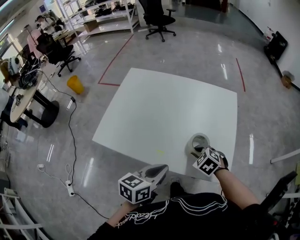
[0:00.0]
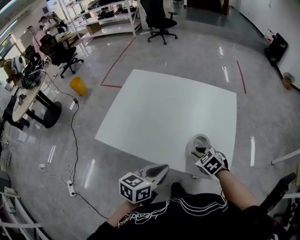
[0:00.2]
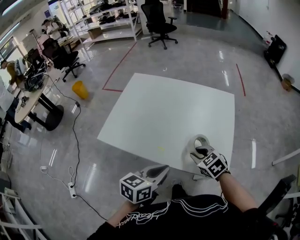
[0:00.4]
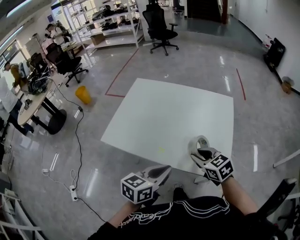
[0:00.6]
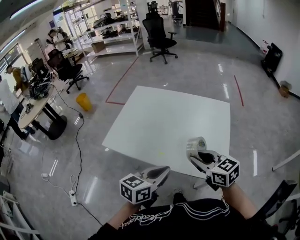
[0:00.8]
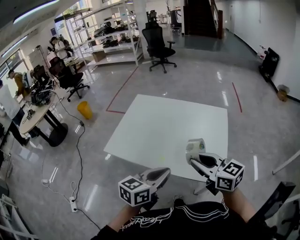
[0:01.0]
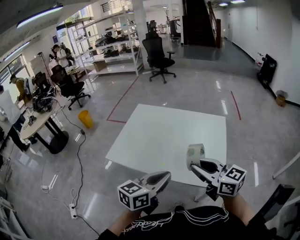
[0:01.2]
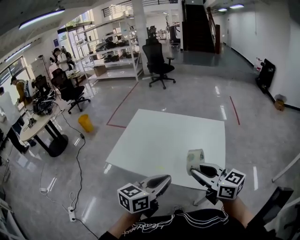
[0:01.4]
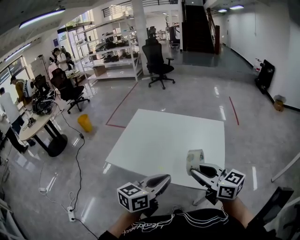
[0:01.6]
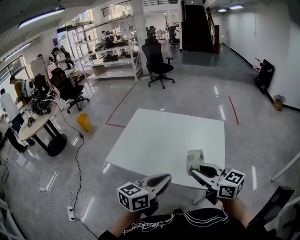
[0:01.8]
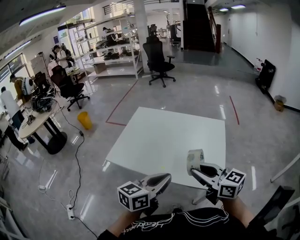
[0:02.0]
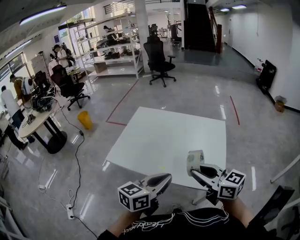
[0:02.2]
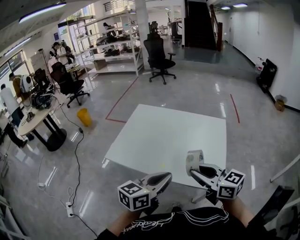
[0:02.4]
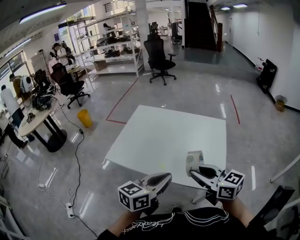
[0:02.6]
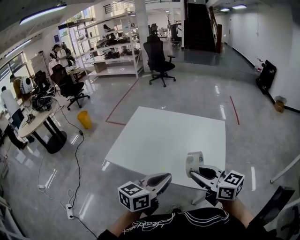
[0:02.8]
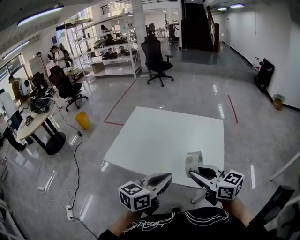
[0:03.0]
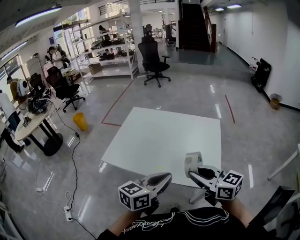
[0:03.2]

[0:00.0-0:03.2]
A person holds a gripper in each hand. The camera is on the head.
0.0 to 1.6 s: The left gripper is displaced upward and backward by about 15 cm; the right gripper shifts about 30 cm upward and backward, and points its fingers about 60 degrees further upward.
1.6 to 3.2 s: The grippers move only a little.

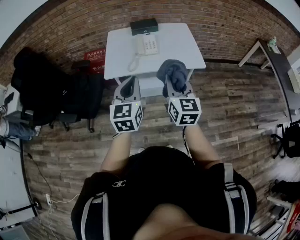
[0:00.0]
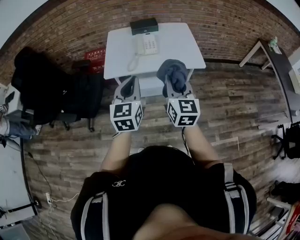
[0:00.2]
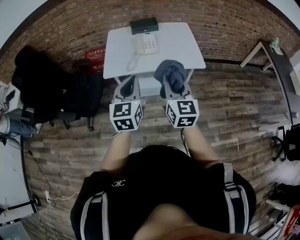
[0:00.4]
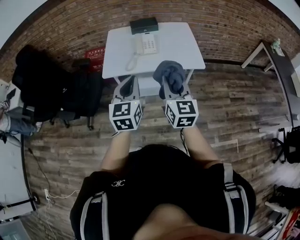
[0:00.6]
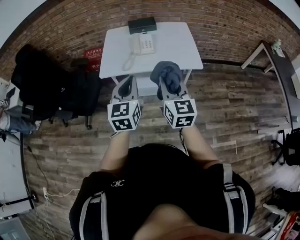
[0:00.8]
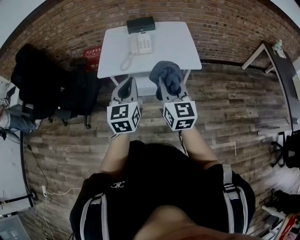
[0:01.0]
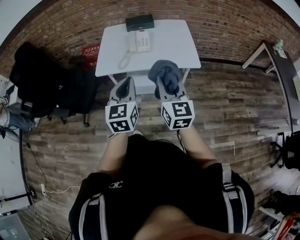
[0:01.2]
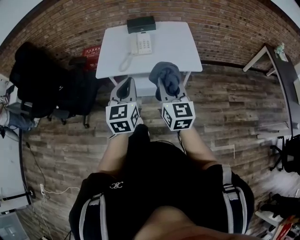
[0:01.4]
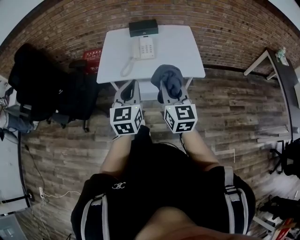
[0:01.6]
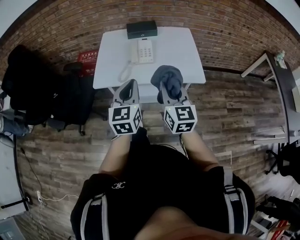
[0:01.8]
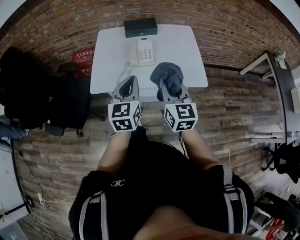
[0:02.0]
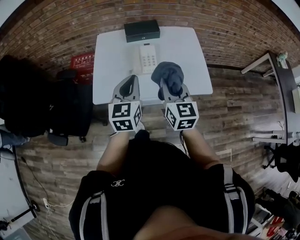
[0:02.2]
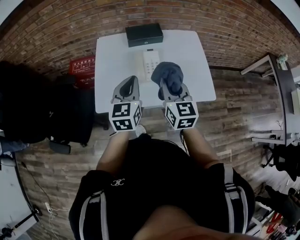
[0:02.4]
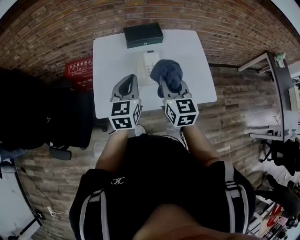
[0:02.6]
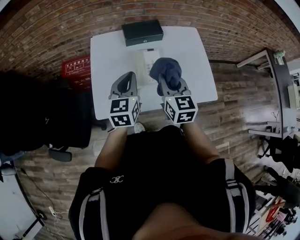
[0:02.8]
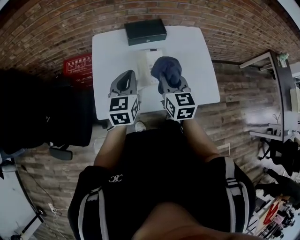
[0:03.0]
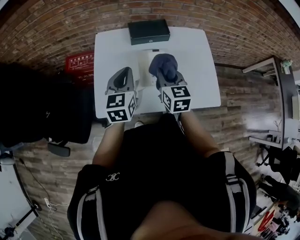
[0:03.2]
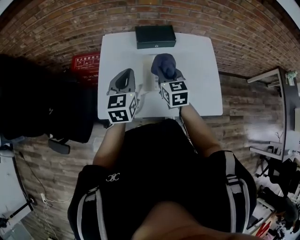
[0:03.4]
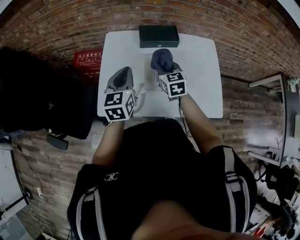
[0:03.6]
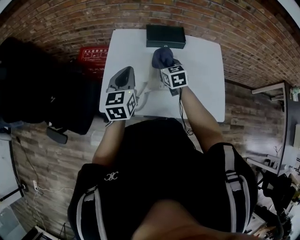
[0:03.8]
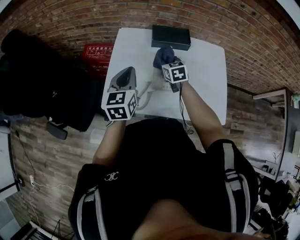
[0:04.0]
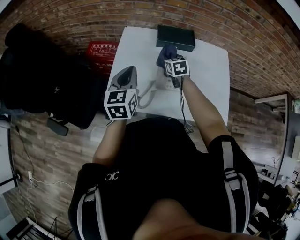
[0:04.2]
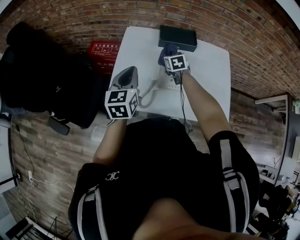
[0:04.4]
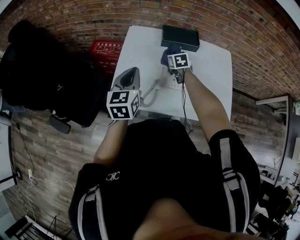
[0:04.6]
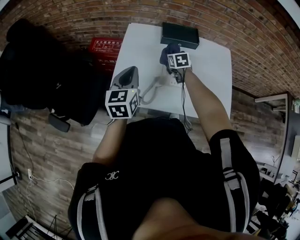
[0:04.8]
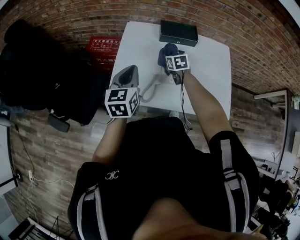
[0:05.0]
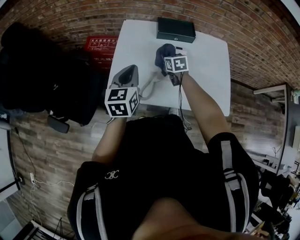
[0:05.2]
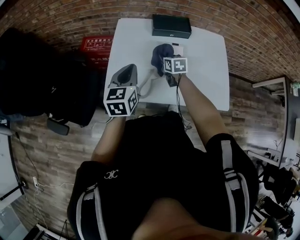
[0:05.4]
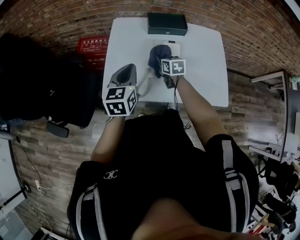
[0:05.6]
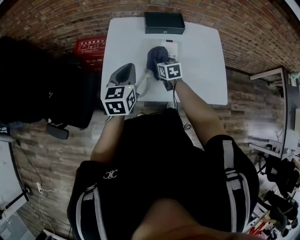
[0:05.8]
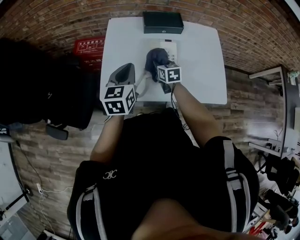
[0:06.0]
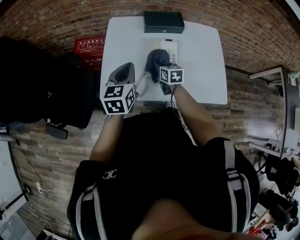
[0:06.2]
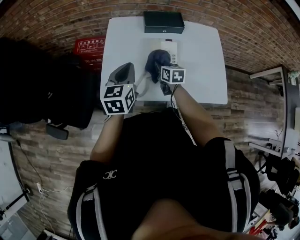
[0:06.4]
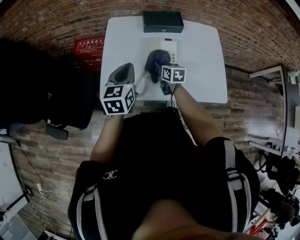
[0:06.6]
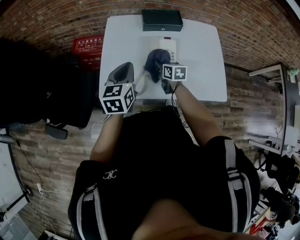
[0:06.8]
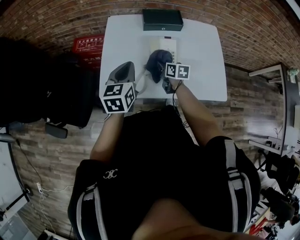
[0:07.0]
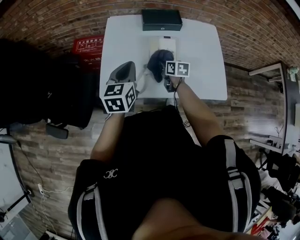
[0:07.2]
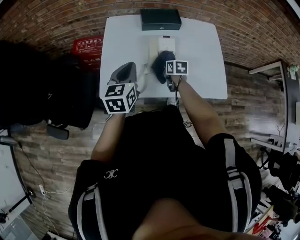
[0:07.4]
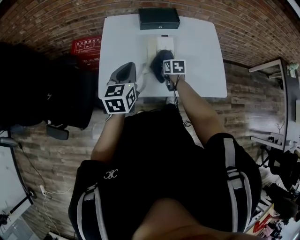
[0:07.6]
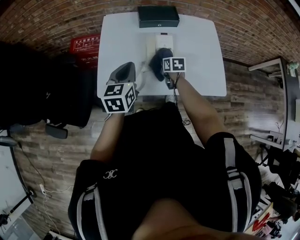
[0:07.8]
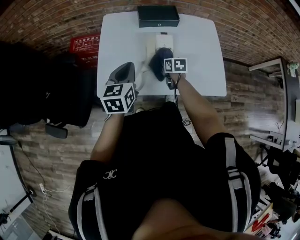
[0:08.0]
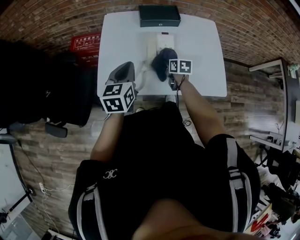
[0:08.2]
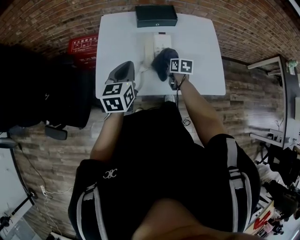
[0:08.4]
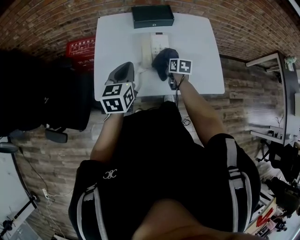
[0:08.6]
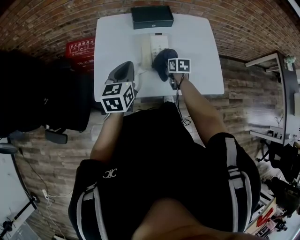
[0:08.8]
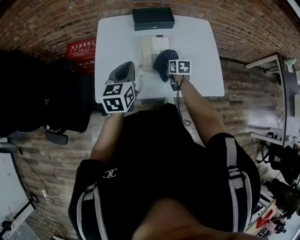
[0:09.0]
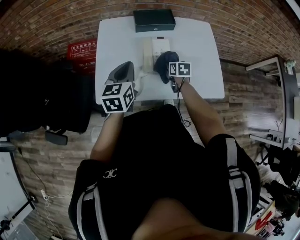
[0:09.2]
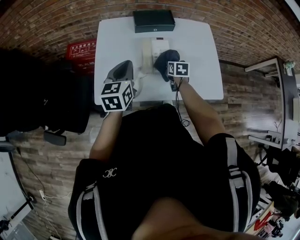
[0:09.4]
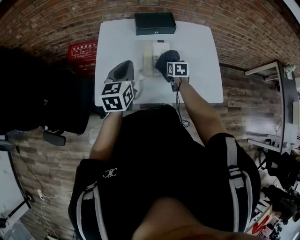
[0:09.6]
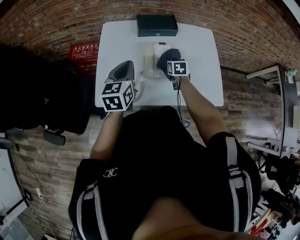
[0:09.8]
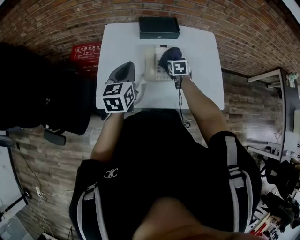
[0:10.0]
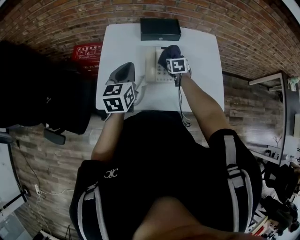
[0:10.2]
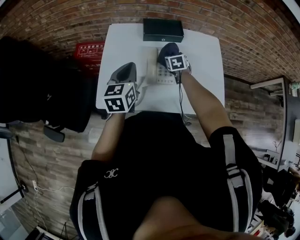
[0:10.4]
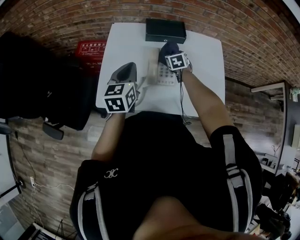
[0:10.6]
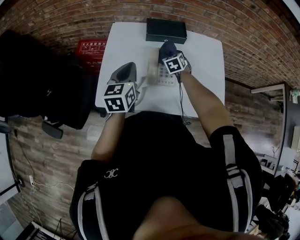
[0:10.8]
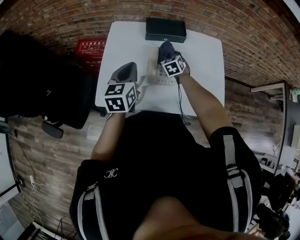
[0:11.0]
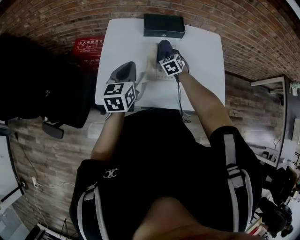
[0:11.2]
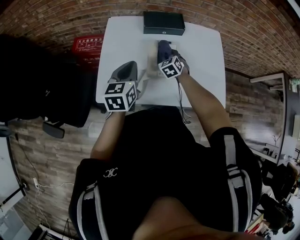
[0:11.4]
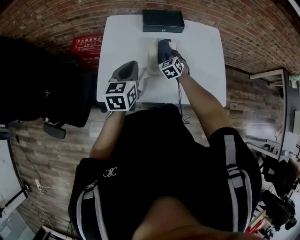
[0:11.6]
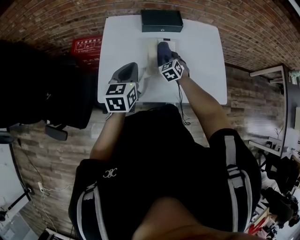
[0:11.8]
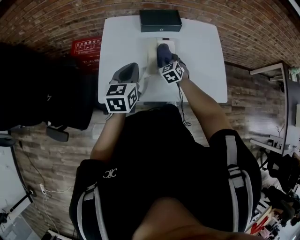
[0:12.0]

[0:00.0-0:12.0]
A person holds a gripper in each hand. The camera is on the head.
0.0 to 1.6 s: The two grippers go some 10 cm to the right and forward.
1.6 to 3.0 s: Both grippers travel together forward, approximately 35 cm.
3.0 to 4.4 s: The left gripper moves to the left, roughly 10 cm. The right gripper goes about 25 cm forward and downward, and changes its angle by about 30 degrees.
4.4 to 6.0 s: The right gripper is displaced backward by approximately 10 cm.
6.0 to 7.6 s: The right gripper is displaced to the right by about 5 cm.
7.6 to 9.0 s: The right gripper ends up approximately 5 cm from where it was.
9.0 to 10.4 s: The right gripper moves forward, about 10 cm, and rotates roughly 30 degrees.
10.4 to 12.0 s: The right gripper travels backward by roughly 10 cm, and changes its angle by roughly 20 degrees.

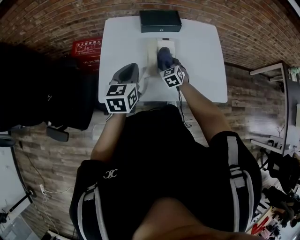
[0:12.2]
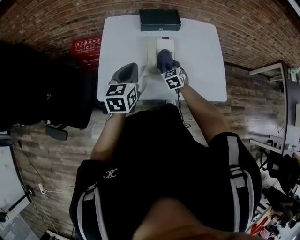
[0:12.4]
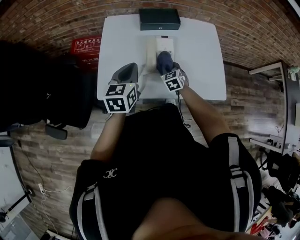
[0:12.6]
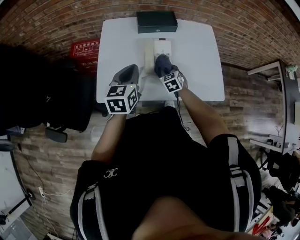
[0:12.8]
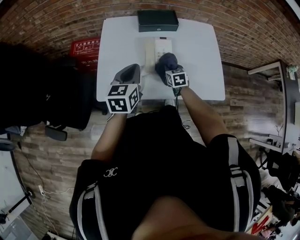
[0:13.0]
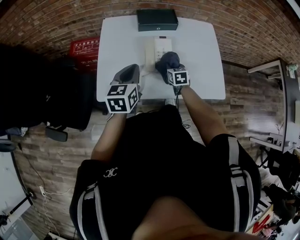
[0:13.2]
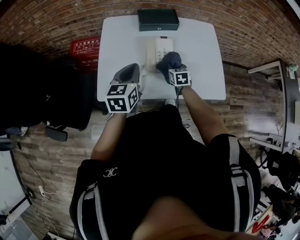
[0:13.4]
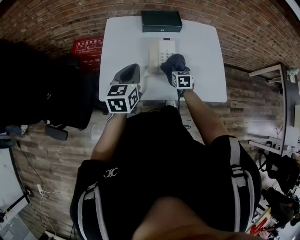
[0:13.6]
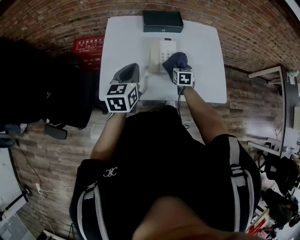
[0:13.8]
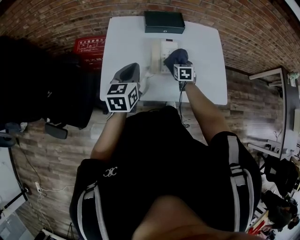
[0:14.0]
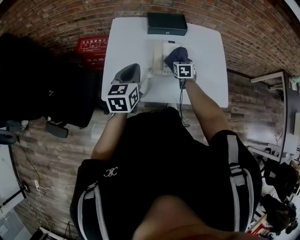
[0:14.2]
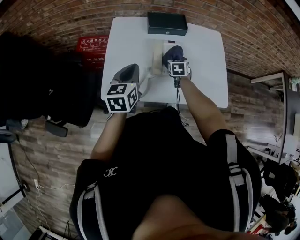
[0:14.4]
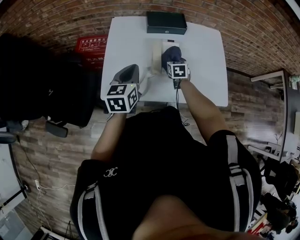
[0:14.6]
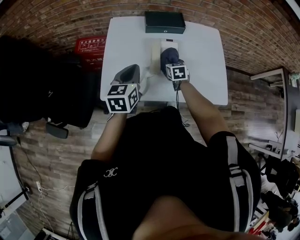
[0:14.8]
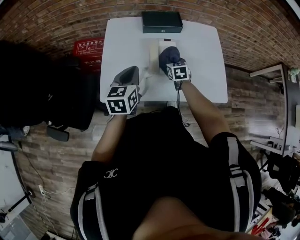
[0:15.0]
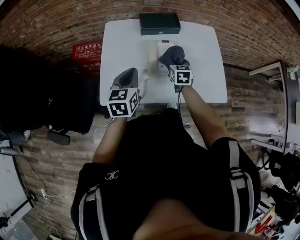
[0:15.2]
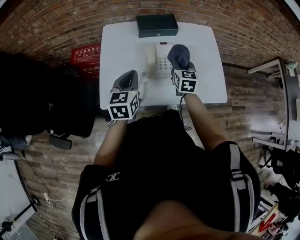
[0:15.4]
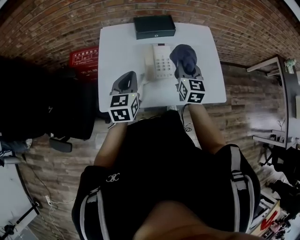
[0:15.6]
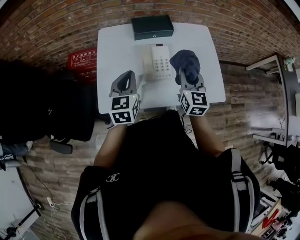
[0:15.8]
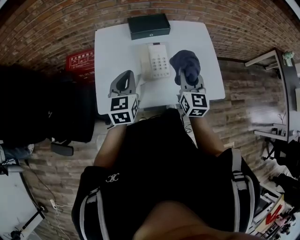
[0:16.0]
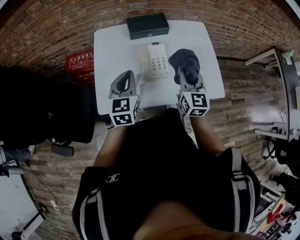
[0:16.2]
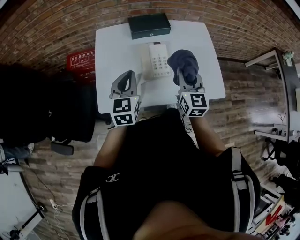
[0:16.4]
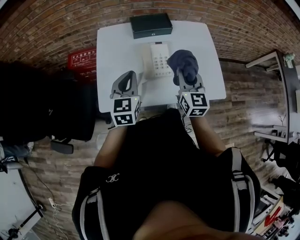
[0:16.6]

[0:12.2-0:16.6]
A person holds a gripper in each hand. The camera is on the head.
12.2 to 13.6 s: The right gripper moves to the right, some 5 cm, and turns by roughly 30 degrees.
13.6 to 15.2 s: The right gripper moves upward, some 5 cm.
15.2 to 16.6 s: The right gripper moves upward and backward, some 20 cm, and turns by roughly 20 degrees.

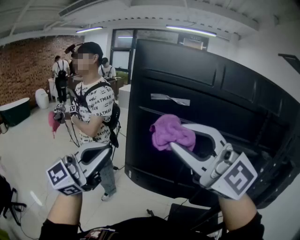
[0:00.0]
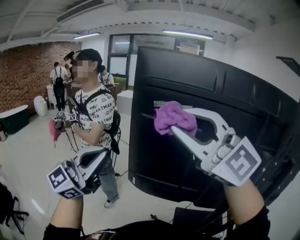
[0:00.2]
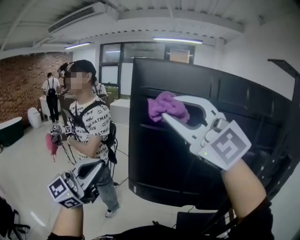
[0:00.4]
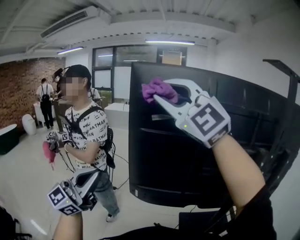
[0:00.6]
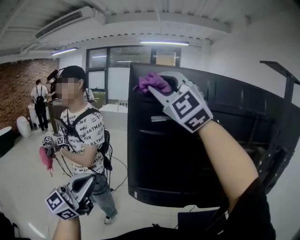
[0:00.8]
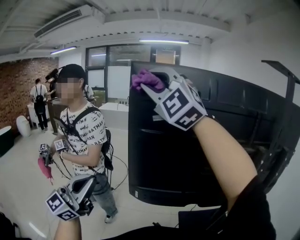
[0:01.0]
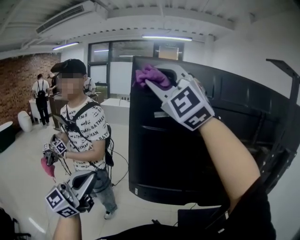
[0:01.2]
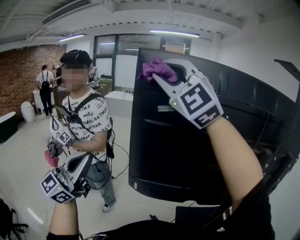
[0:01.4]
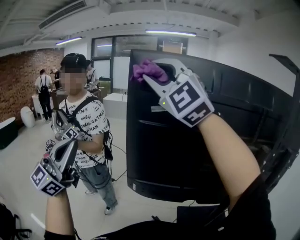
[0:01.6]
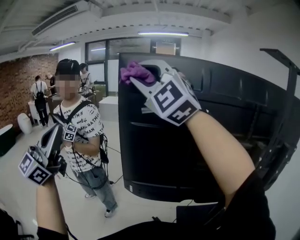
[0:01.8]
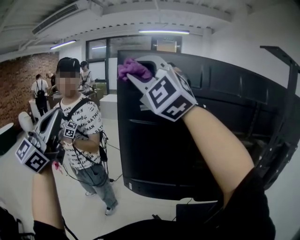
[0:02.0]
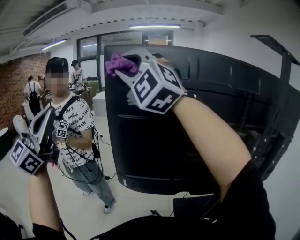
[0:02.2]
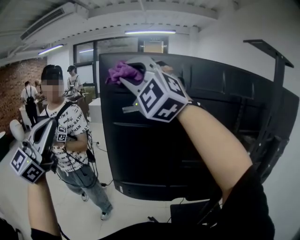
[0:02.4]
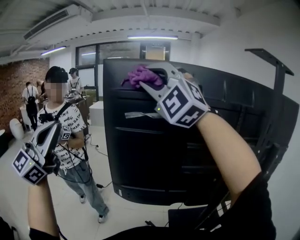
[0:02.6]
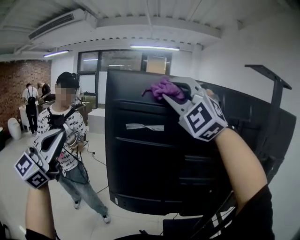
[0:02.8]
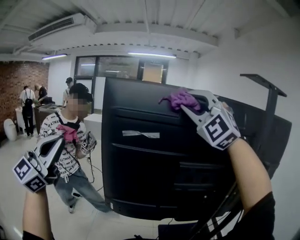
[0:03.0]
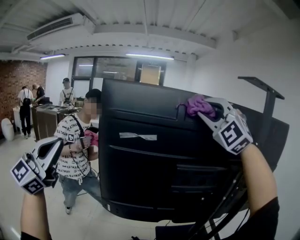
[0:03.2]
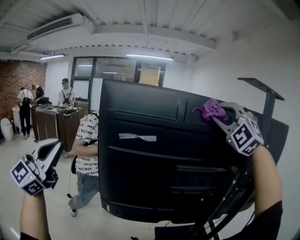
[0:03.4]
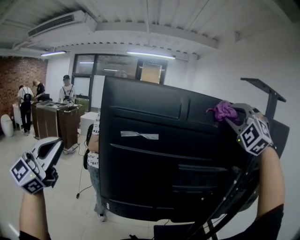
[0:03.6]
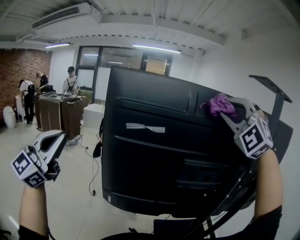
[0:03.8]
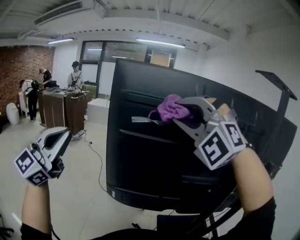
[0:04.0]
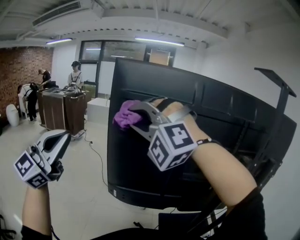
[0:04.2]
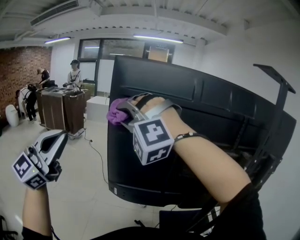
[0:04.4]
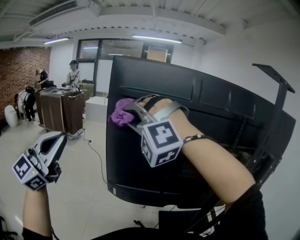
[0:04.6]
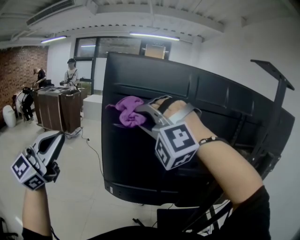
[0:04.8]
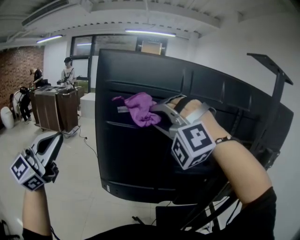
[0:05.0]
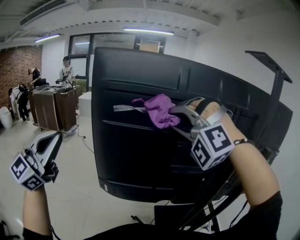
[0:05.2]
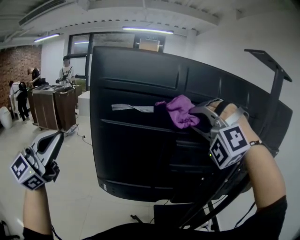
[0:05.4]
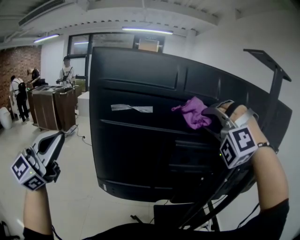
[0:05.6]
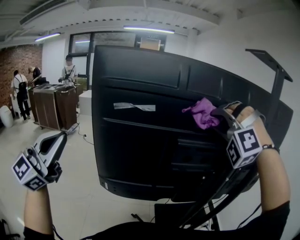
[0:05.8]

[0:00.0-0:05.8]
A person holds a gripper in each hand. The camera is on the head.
0.0 to 1.4 s: The right gripper shifts about 20 cm forward, upward and to the left, and rotates some 40 degrees. The left gripper travels to the left by approximately 10 cm.
1.4 to 2.8 s: The right gripper shifts approximately 10 cm to the right; the left gripper shifts roughly 10 cm upward.
2.8 to 4.4 s: The right gripper shifts approximately 20 cm to the left and downward, and turns by roughly 30 degrees.
4.4 to 5.8 s: The right gripper heads to the right, covering some 35 cm, and turns by roughly 30 degrees; the left gripper ends up some 5 cm from where it was.
